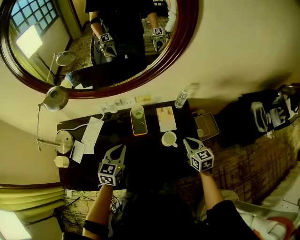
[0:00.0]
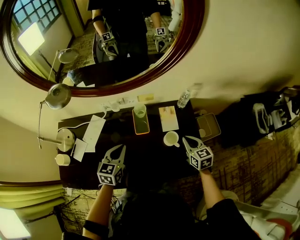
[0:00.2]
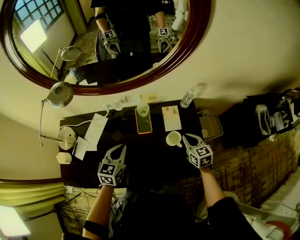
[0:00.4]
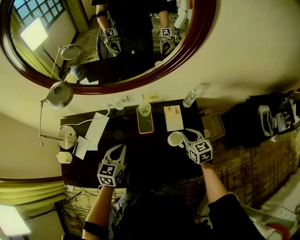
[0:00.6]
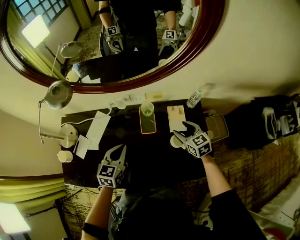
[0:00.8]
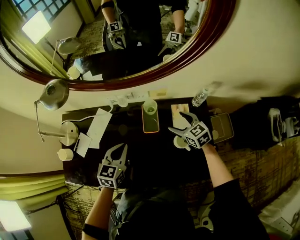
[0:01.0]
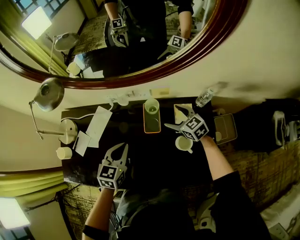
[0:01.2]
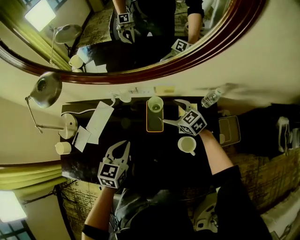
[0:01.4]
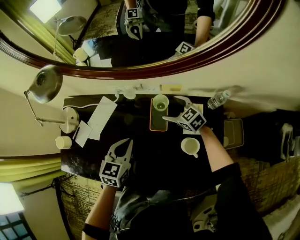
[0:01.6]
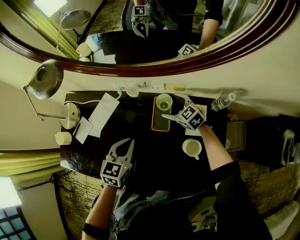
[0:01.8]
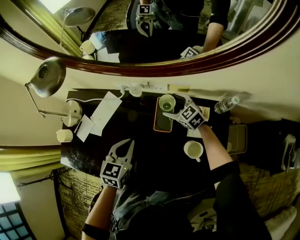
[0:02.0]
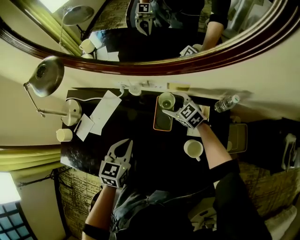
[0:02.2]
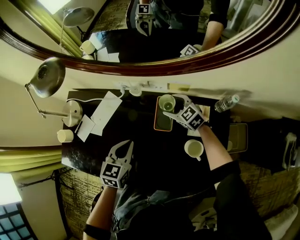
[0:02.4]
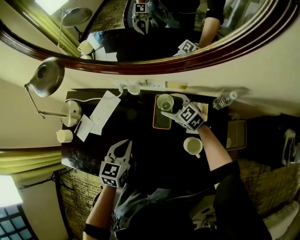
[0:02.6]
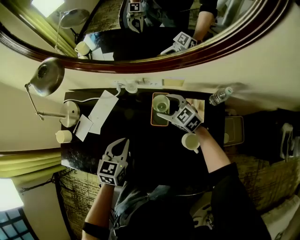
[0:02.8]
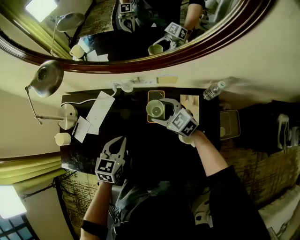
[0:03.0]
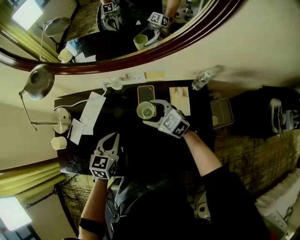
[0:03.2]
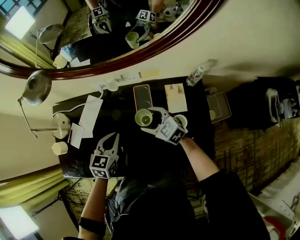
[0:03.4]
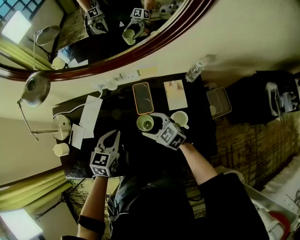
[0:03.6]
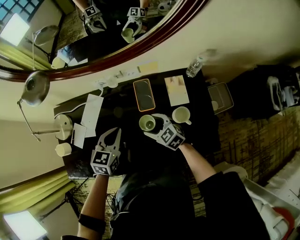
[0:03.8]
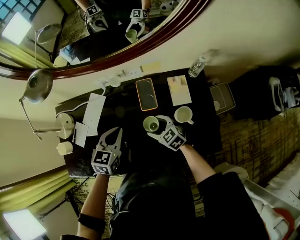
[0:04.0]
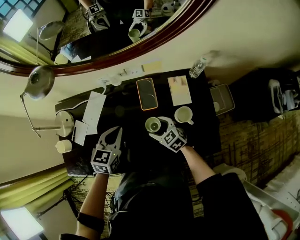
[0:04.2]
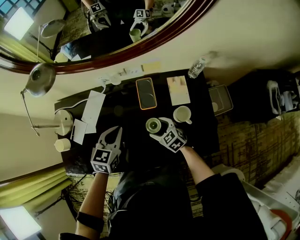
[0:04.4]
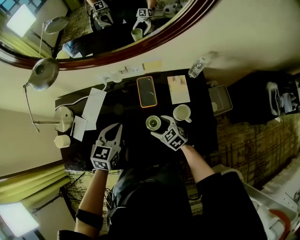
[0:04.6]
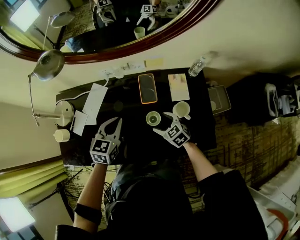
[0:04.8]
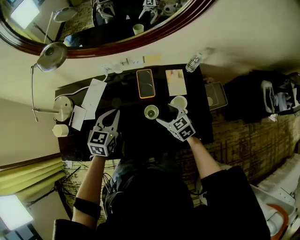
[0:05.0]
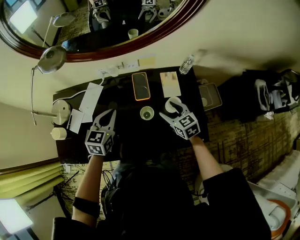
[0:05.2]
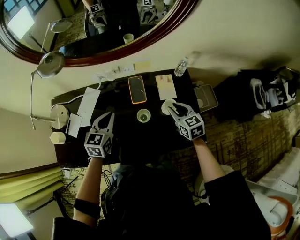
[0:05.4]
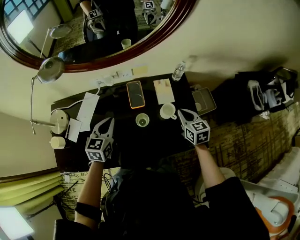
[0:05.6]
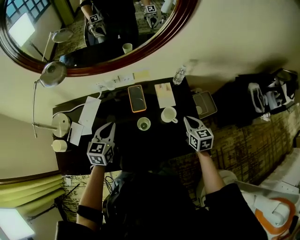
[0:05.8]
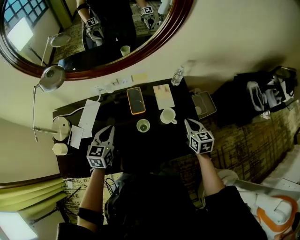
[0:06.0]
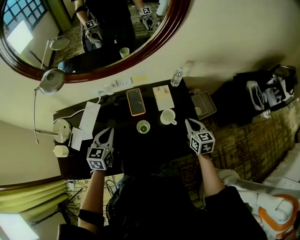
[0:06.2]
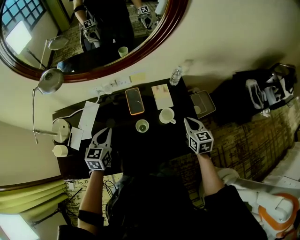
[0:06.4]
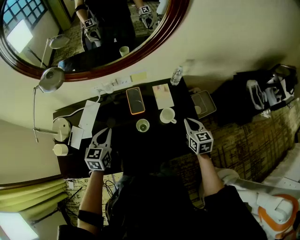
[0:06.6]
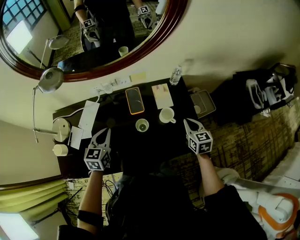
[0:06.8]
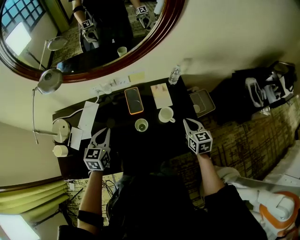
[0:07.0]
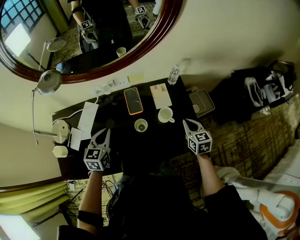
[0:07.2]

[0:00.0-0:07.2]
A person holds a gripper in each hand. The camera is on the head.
0:00.0 to 0:01.4: The left gripper goes about 5 cm downward. The right gripper goes roughly 30 cm forward, to the left and downward, rotates approximately 40 degrees, and opens.
0:01.4 to 0:02.8: The right gripper moves to the left, some 5 cm.
0:02.8 to 0:04.4: The right gripper shifts some 20 cm backward and downward, and rotates approximately 20 degrees.
0:04.4 to 0:05.8: The right gripper shifts some 25 cm to the right and upward, swivels some 40 degrees, and closes its fingers.
0:05.8 to 0:07.2: The grippers make only small movements.

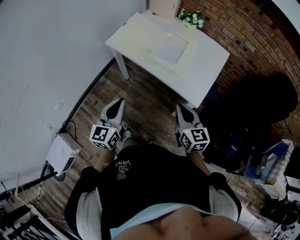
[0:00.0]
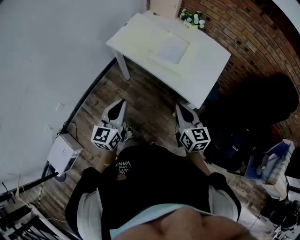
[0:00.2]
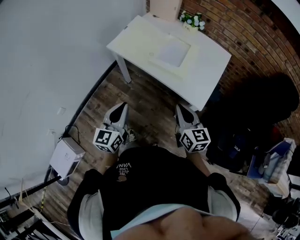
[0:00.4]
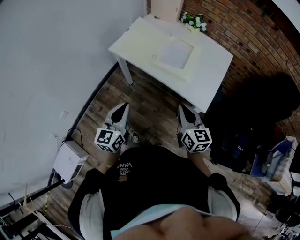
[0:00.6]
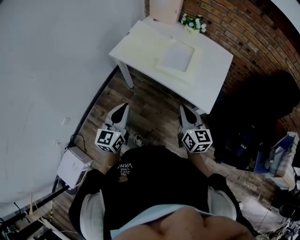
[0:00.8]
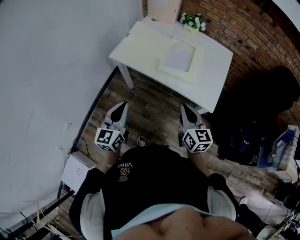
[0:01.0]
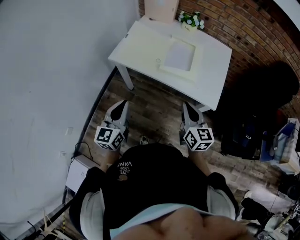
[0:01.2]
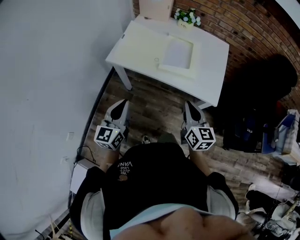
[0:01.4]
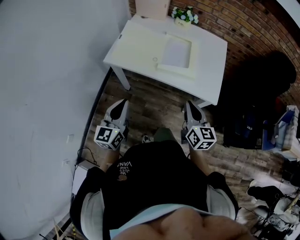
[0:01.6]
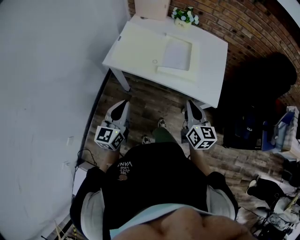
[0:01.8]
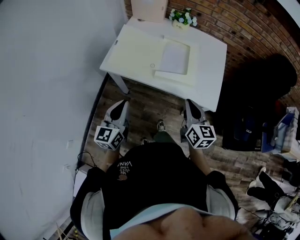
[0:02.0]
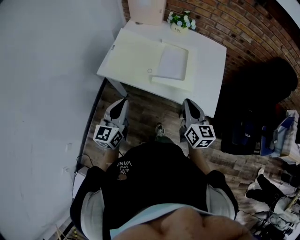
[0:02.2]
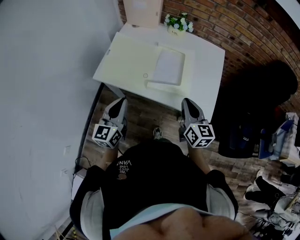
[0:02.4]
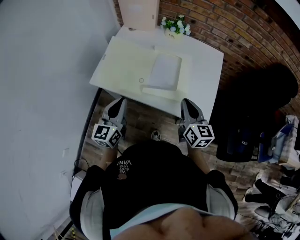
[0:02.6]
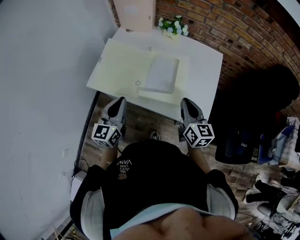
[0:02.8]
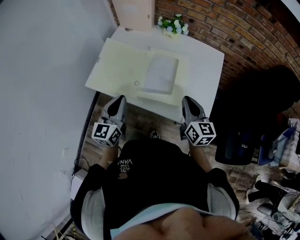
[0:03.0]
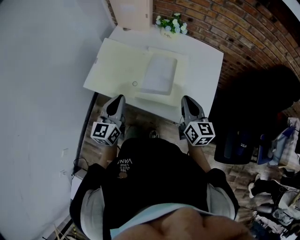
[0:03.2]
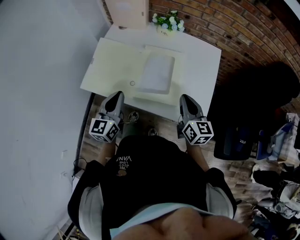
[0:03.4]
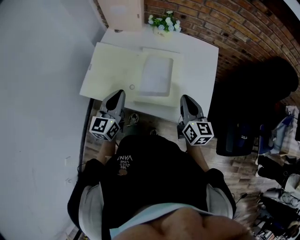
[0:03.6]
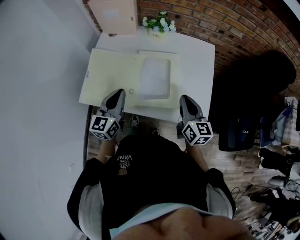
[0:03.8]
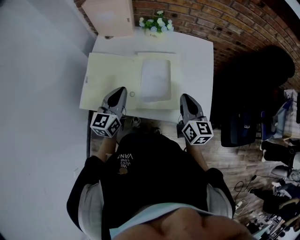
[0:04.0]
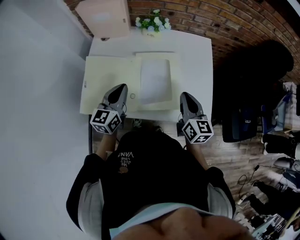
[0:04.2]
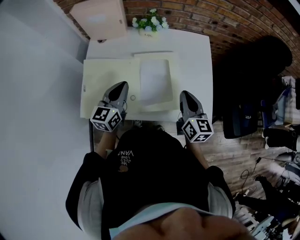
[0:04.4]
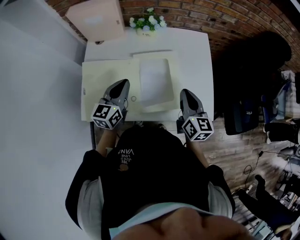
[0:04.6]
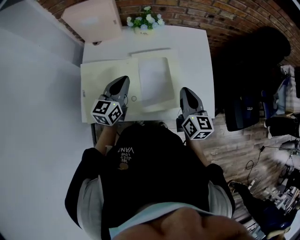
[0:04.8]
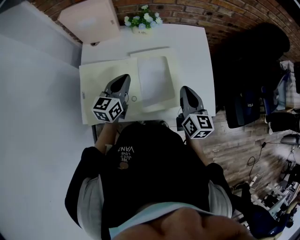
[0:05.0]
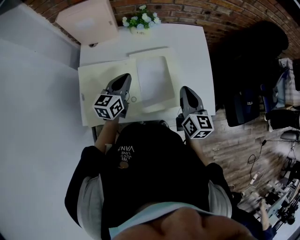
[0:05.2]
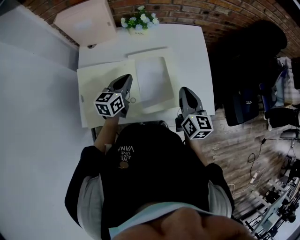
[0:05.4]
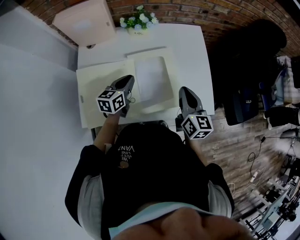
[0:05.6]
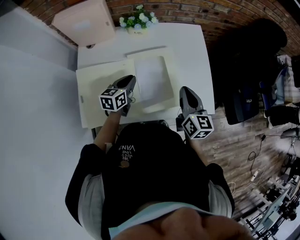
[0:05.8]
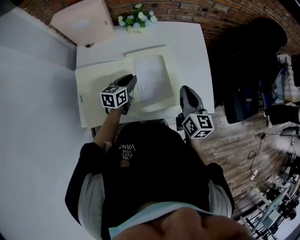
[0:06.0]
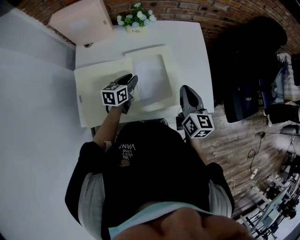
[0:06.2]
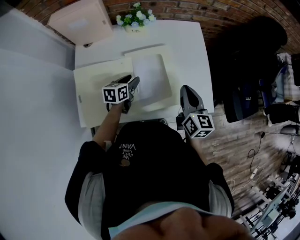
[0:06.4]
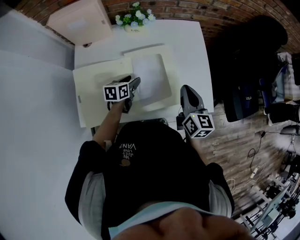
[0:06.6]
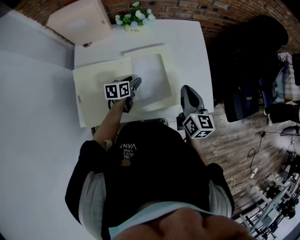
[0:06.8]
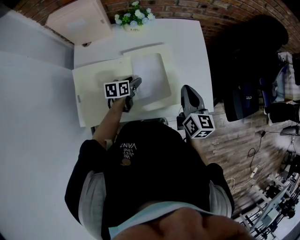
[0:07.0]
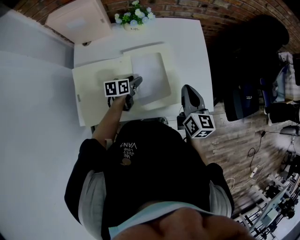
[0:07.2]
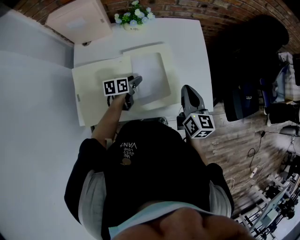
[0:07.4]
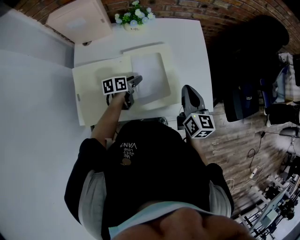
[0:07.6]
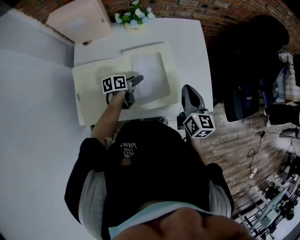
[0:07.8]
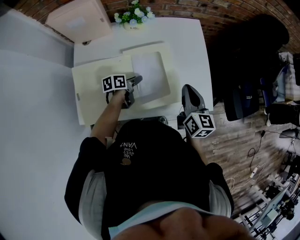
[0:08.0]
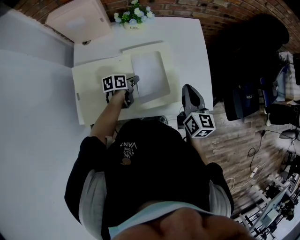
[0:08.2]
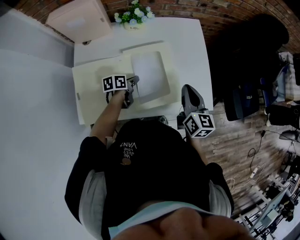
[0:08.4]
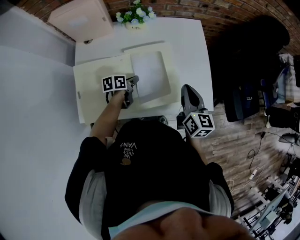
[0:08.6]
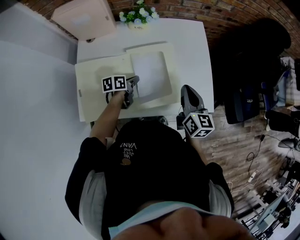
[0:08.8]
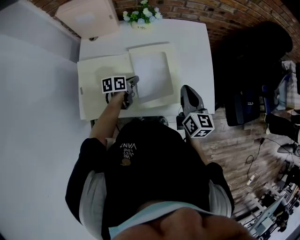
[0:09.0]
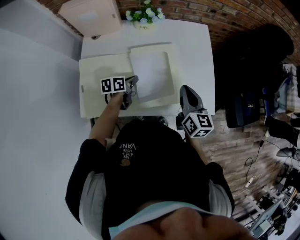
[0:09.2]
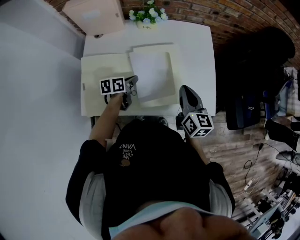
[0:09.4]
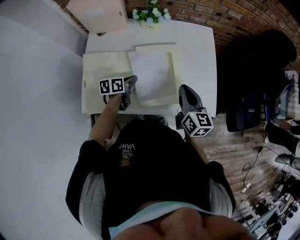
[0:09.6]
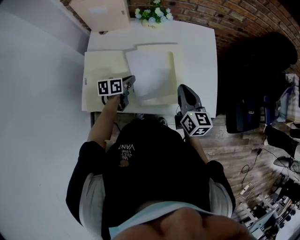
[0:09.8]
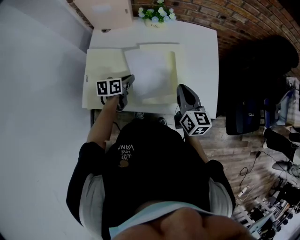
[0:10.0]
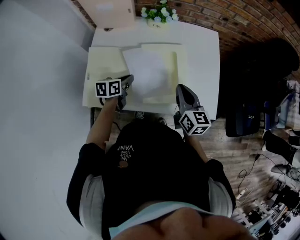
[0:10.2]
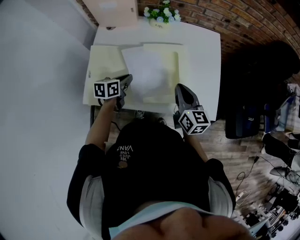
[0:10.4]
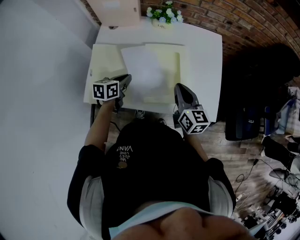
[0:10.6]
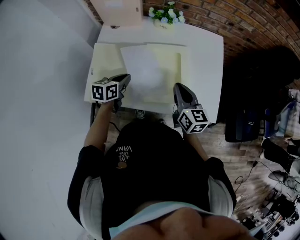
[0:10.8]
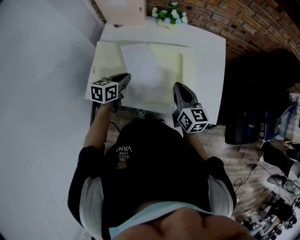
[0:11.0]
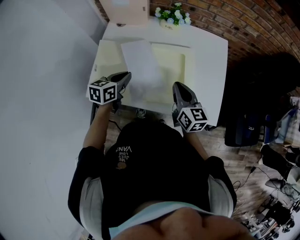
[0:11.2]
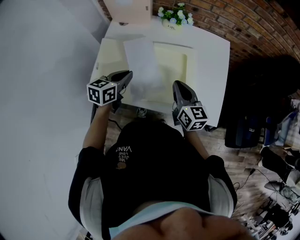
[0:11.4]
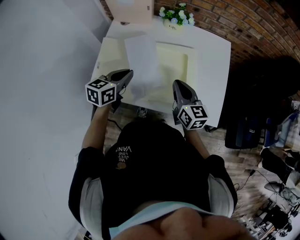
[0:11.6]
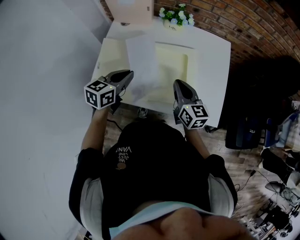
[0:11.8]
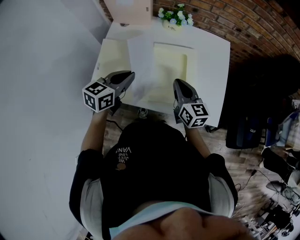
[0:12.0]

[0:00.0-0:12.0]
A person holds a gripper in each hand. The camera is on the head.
0:00.0 to 0:01.6: The left gripper is displaced to the left and forward by about 15 cm, while the right gripper moves to the left and forward, roughly 10 cm, and changes its angle by some 20 degrees.
0:01.6 to 0:03.0: The two grippers go approximately 20 cm forward and to the right.
0:03.0 to 0:04.4: The right gripper shifts by some 5 cm, and swivels some 20 degrees. The left gripper travels forward by about 15 cm, and turns by about 20 degrees.
0:04.4 to 0:06.0: The left gripper travels downward and forward by approximately 15 cm, and swivels approximately 30 degrees.
0:06.0 to 0:07.6: The left gripper shifts some 5 cm downward, turns by some 30 degrees, and opens.
0:07.6 to 0:09.0: The left gripper closes.
0:09.0 to 0:10.4: The left gripper moves upward, to the left and backward, approximately 10 cm, while the right gripper is displaced to the left by some 5 cm.
0:10.4 to 0:12.0: The left gripper is displaced upward by roughly 15 cm, and rotates approximately 20 degrees.

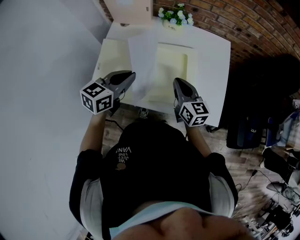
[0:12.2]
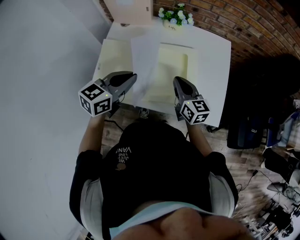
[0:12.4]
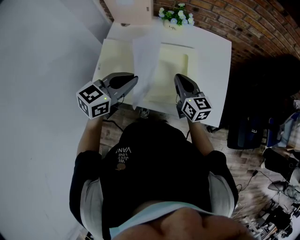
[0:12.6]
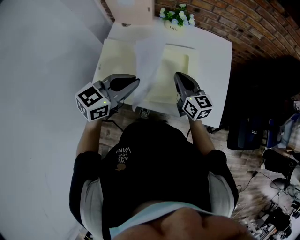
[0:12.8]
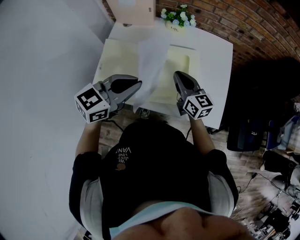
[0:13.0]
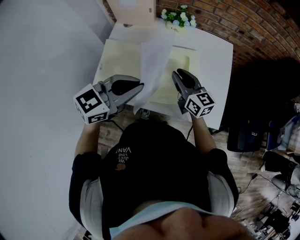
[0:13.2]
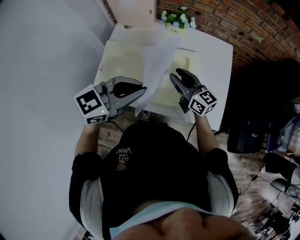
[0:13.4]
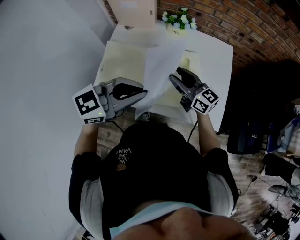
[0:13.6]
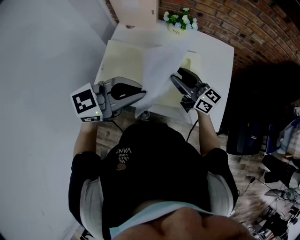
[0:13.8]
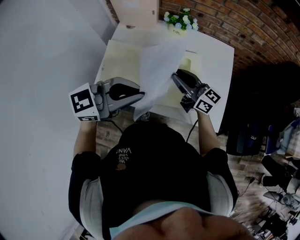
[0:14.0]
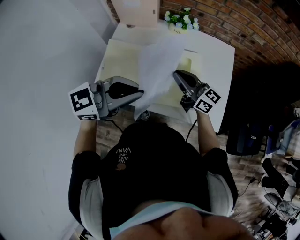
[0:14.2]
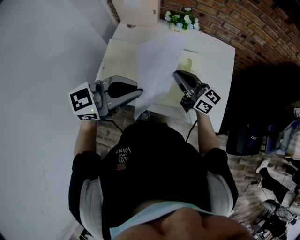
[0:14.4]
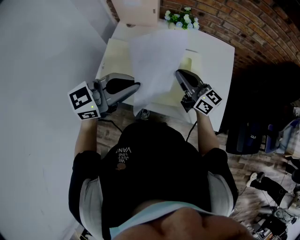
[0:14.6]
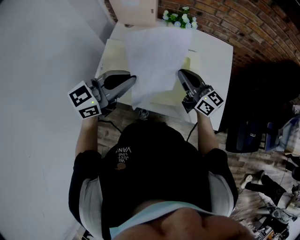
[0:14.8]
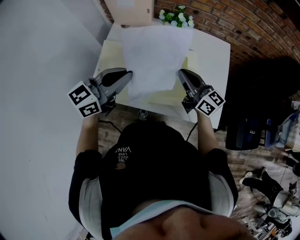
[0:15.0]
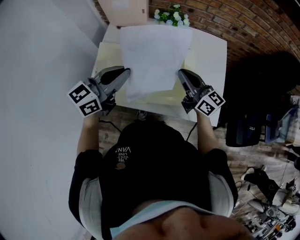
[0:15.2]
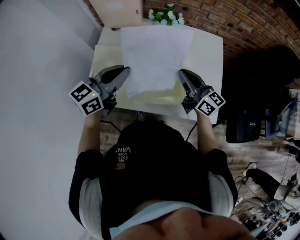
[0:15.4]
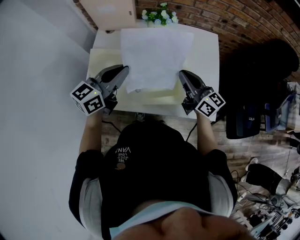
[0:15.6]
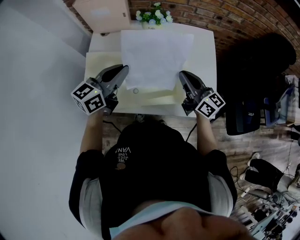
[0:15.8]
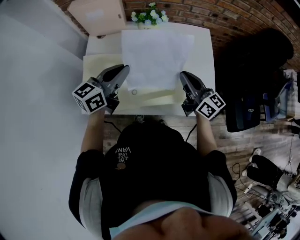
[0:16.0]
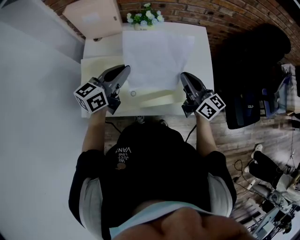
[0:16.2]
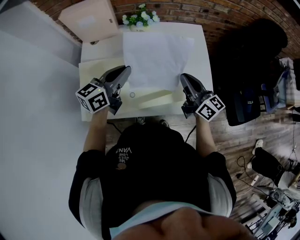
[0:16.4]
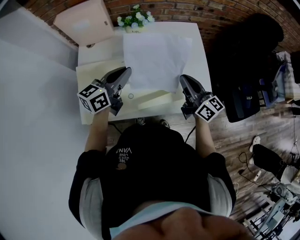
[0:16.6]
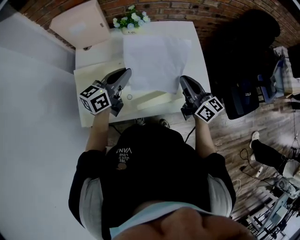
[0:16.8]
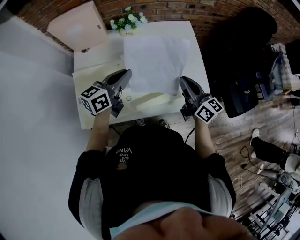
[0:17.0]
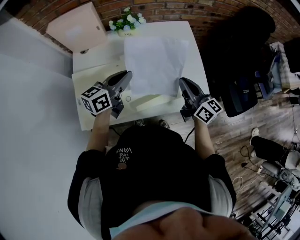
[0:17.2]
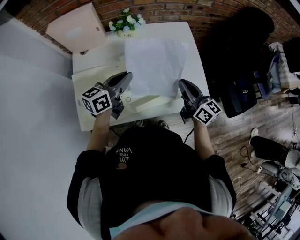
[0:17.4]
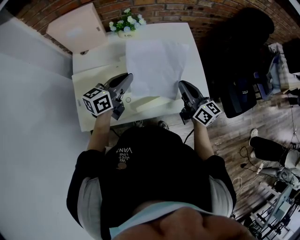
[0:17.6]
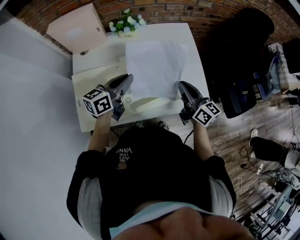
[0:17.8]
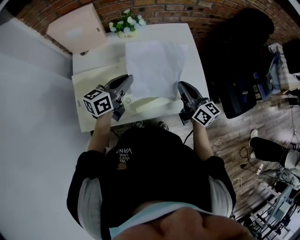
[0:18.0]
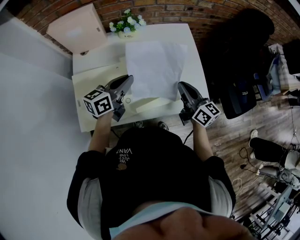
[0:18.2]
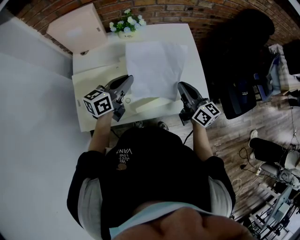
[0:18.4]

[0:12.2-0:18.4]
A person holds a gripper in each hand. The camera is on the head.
0:12.2 to 0:13.8: The left gripper travels upward by some 10 cm, and turns by approximately 30 degrees. The right gripper ends up about 5 cm from where it was, rotates some 30 degrees, and opens up.
0:13.8 to 0:15.4: The right gripper shifts by about 5 cm, and closes its fingers; the left gripper changes place by roughly 10 cm, and swivels roughly 20 degrees.
0:15.4 to 0:16.8: The left gripper goes some 10 cm to the right, downward and forward. The right gripper moves to the right, approximately 10 cm, and turns by approximately 20 degrees.
0:16.8 to 0:18.4: The grippers move only a little.
